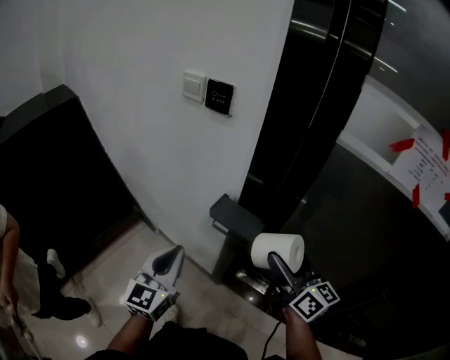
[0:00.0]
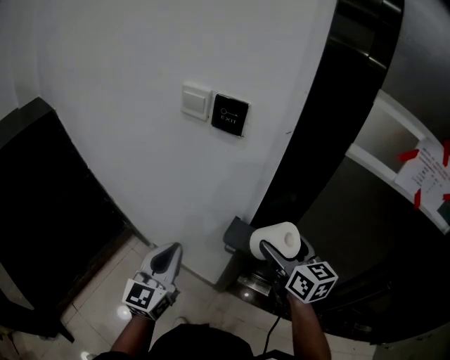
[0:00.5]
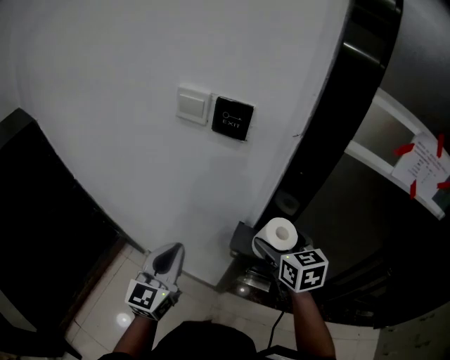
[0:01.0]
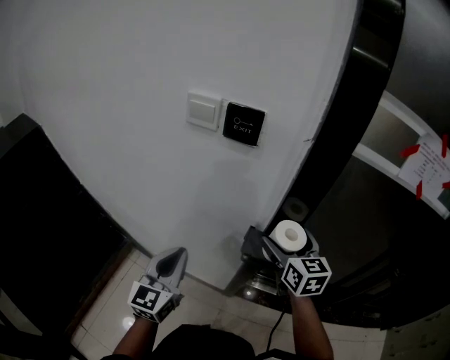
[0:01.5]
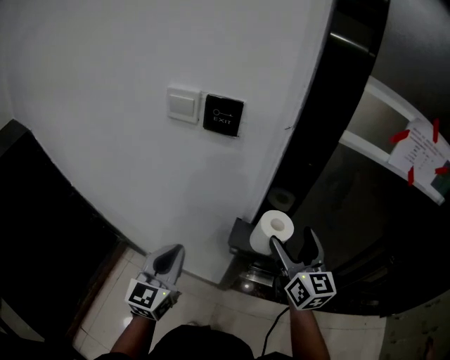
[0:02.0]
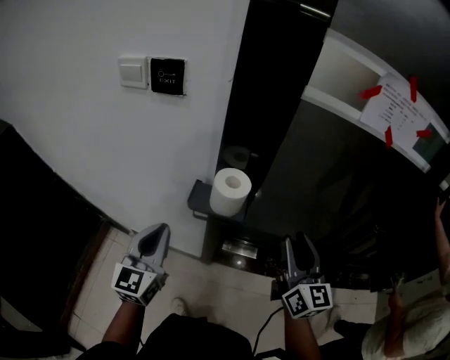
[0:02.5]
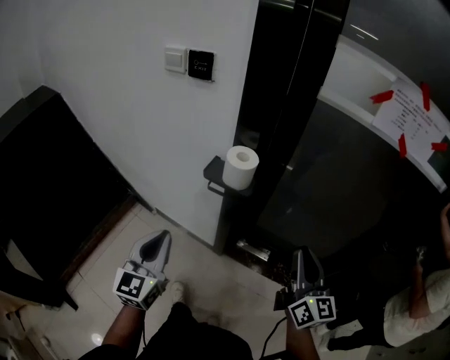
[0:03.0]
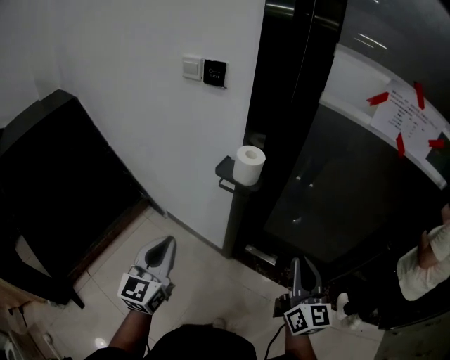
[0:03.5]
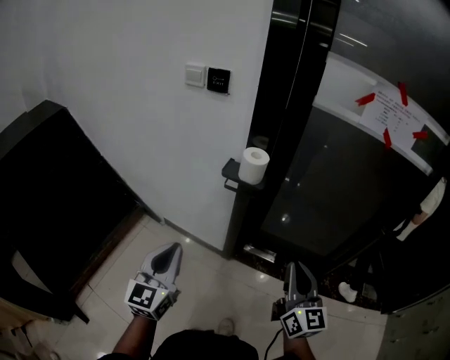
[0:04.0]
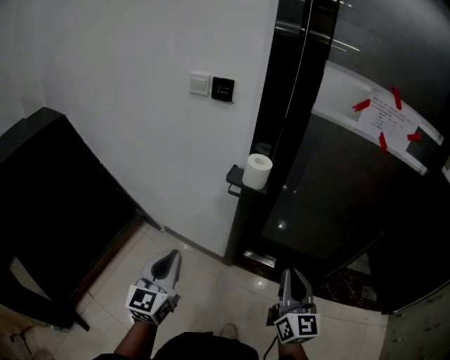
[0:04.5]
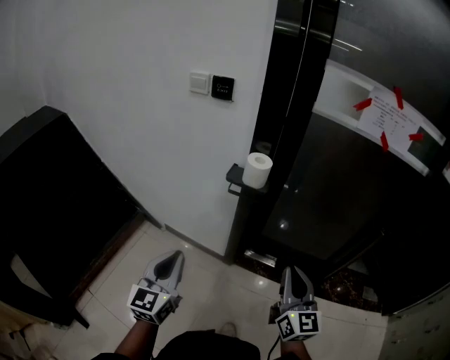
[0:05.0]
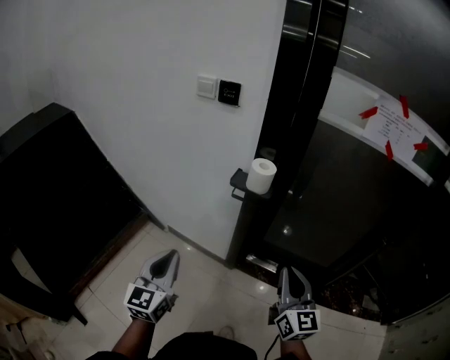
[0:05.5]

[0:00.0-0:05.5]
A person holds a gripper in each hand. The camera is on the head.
0:00.0 to 0:02.0: Both grippers travel together forward and to the left, roughly 15 cm. The right gripper swivels roughly 40 degrees.
0:02.0 to 0:03.5: The right gripper heads backward and to the right, covering approximately 30 cm, and closes up; the left gripper is displaced backward by approximately 25 cm.
0:03.5 to 0:05.5: The right gripper shifts approximately 10 cm to the left and backward. Meanwhile the left gripper goes roughly 5 cm to the left.

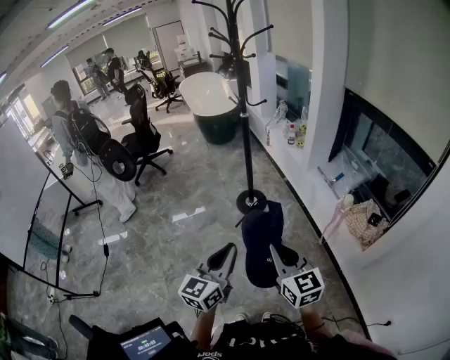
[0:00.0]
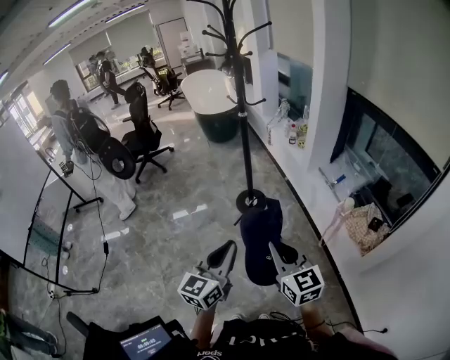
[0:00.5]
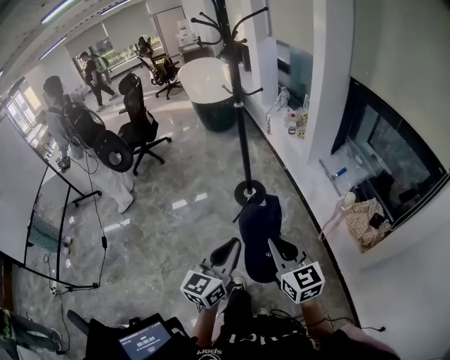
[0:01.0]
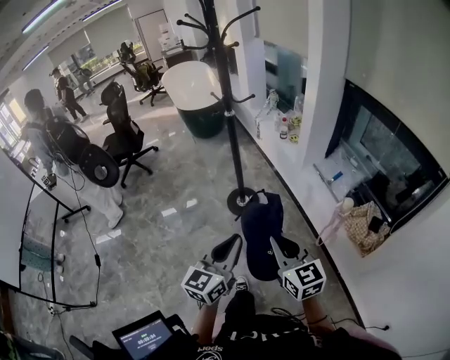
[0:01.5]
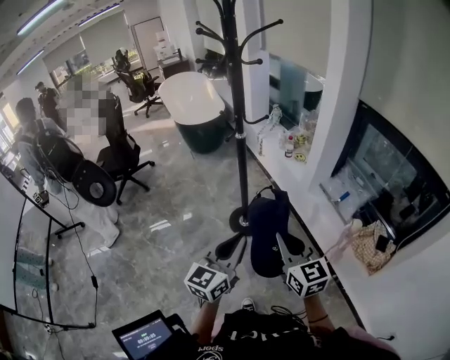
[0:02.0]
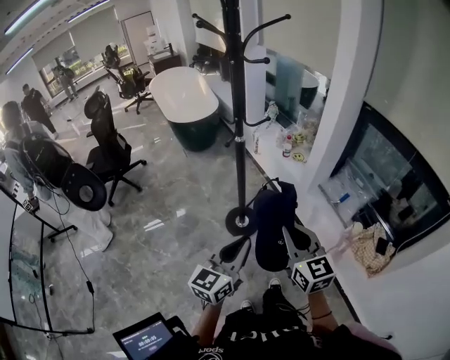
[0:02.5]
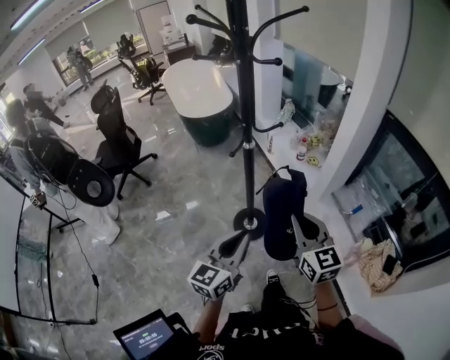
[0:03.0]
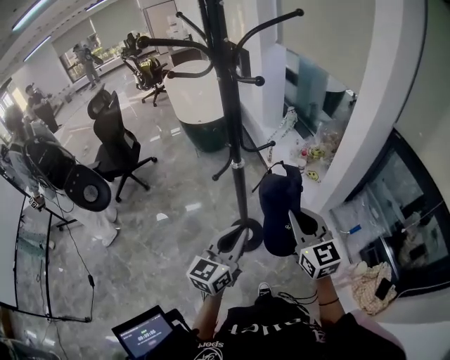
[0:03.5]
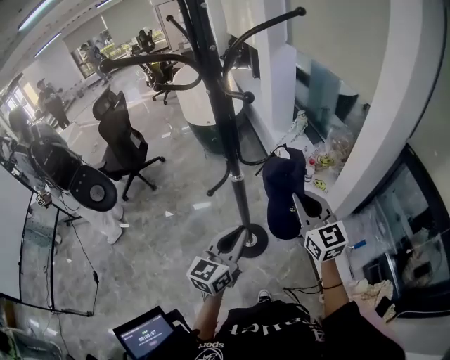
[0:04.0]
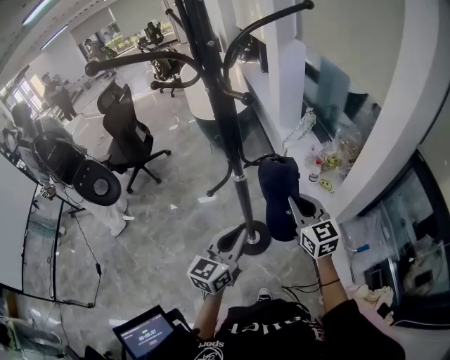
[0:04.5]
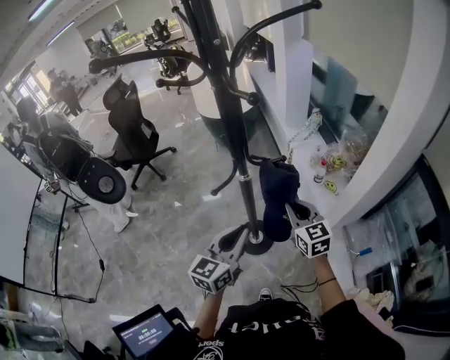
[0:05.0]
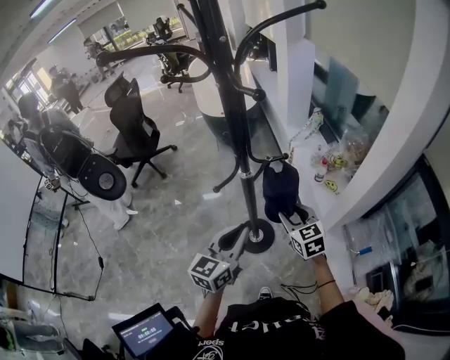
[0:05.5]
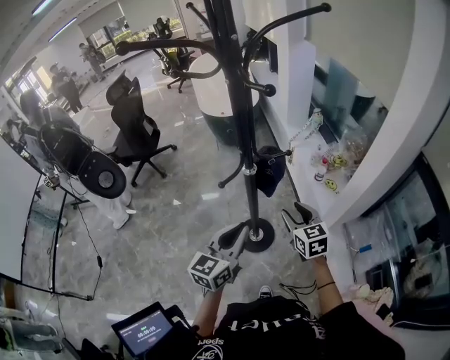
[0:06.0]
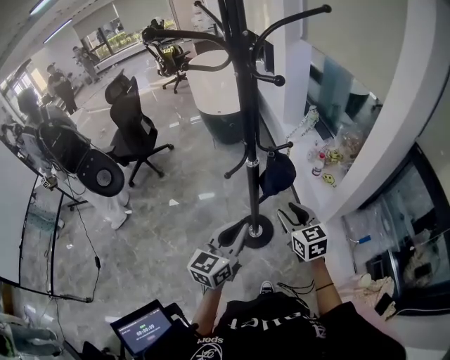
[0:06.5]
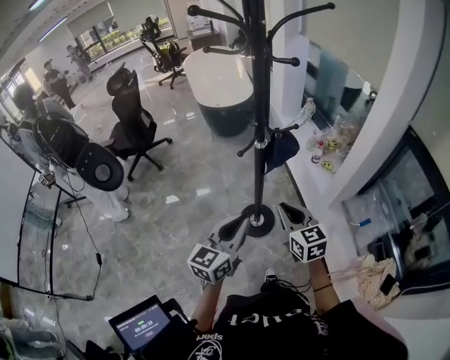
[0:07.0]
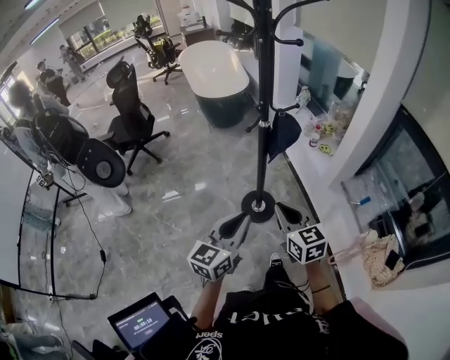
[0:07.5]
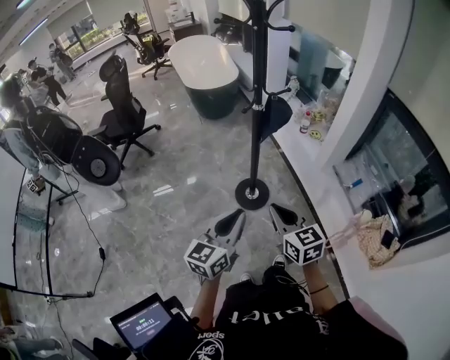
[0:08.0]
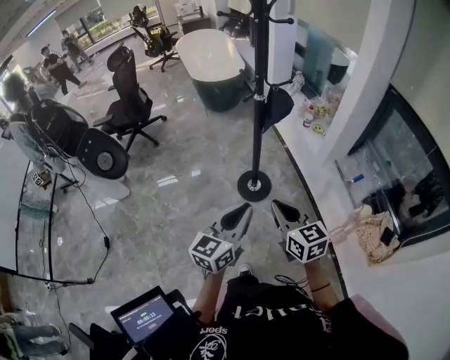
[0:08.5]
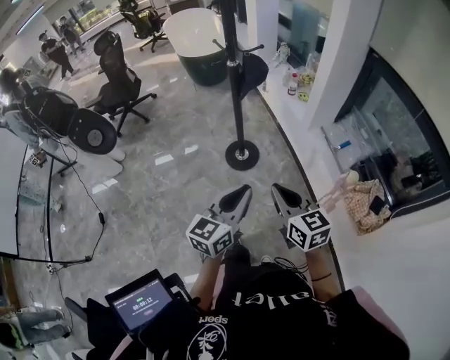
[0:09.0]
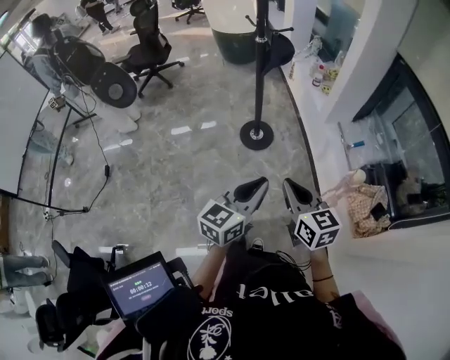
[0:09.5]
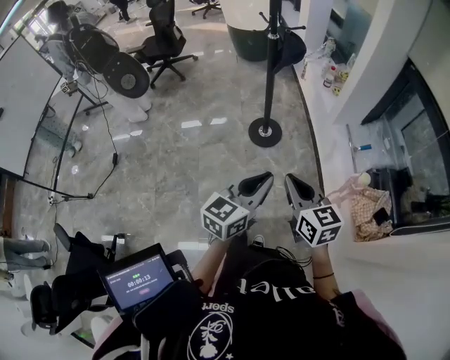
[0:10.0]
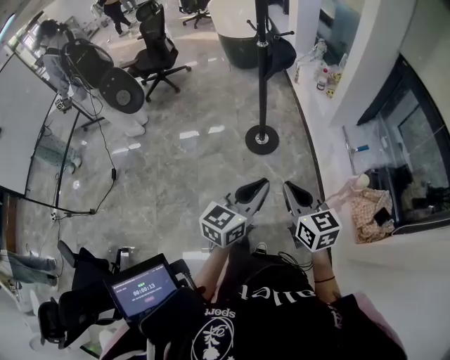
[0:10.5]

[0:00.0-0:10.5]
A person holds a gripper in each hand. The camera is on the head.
0:00.0 to 0:02.0: Both grippers travel together forward, roughly 30 cm.
0:02.0 to 0:04.0: The two grippers go about 40 cm forward.
0:04.0 to 0:06.5: The right gripper travels downward and to the left by approximately 15 cm, swivels about 20 degrees, and opens its fingers, while the left gripper changes place by about 5 cm.
0:06.5 to 0:08.5: The grippers both shift backward by approximately 30 cm. The right gripper closes its fingers.
0:08.5 to 0:10.5: Both grippers travel together backward and to the right, about 25 cm.

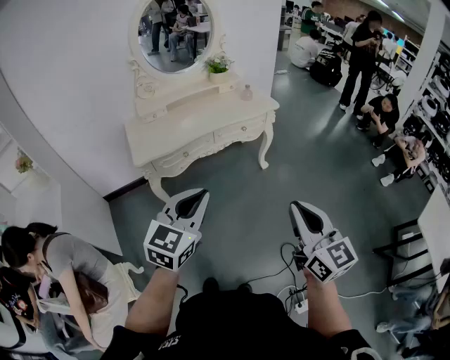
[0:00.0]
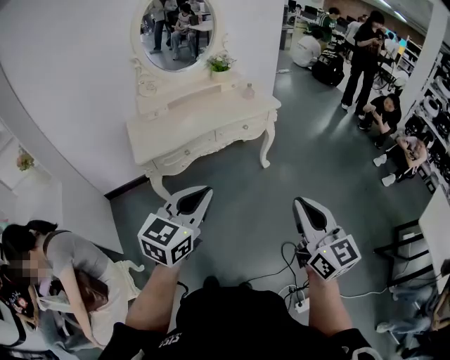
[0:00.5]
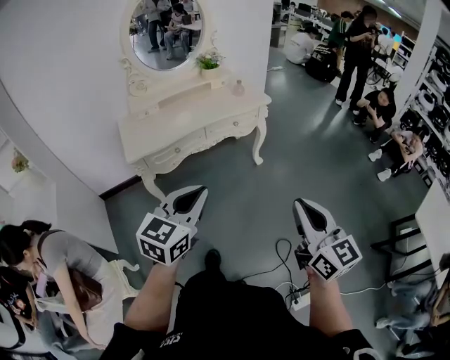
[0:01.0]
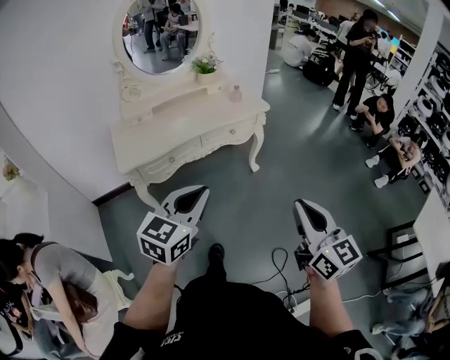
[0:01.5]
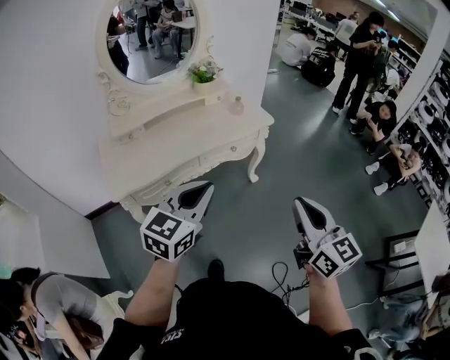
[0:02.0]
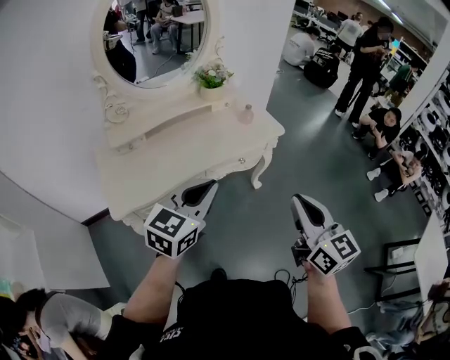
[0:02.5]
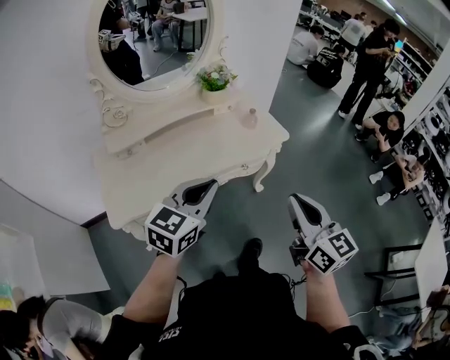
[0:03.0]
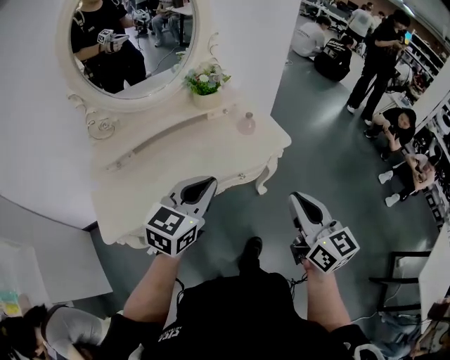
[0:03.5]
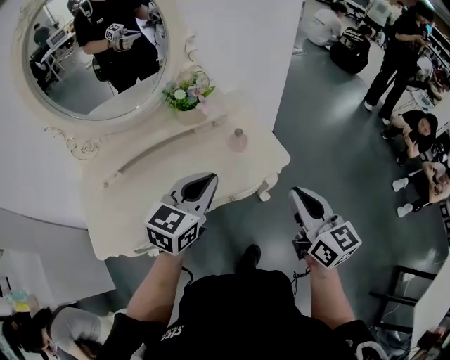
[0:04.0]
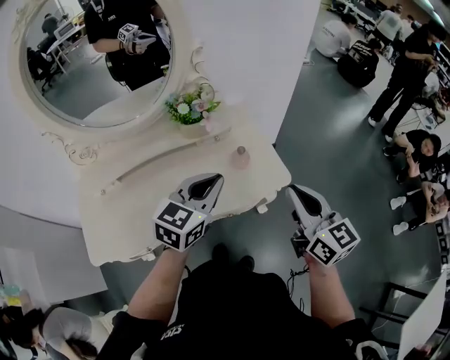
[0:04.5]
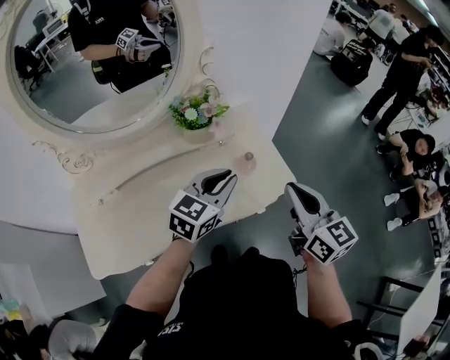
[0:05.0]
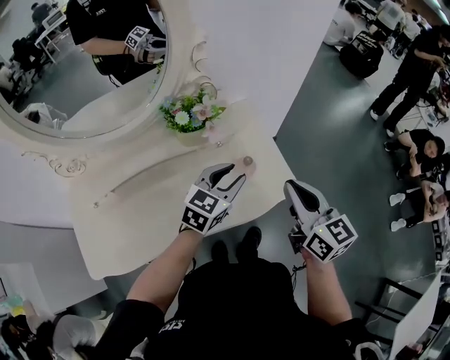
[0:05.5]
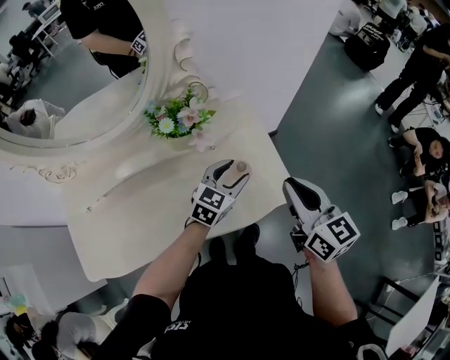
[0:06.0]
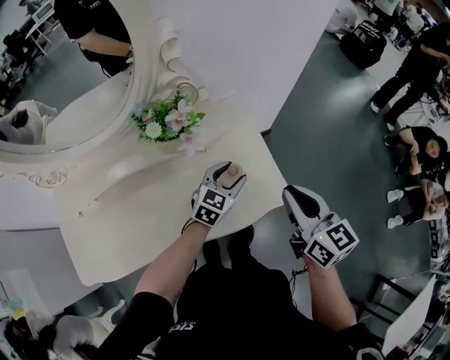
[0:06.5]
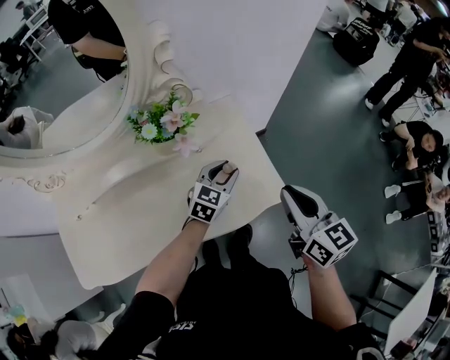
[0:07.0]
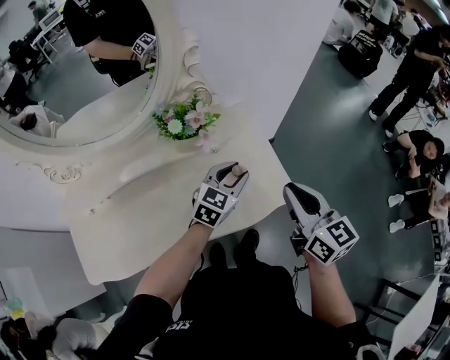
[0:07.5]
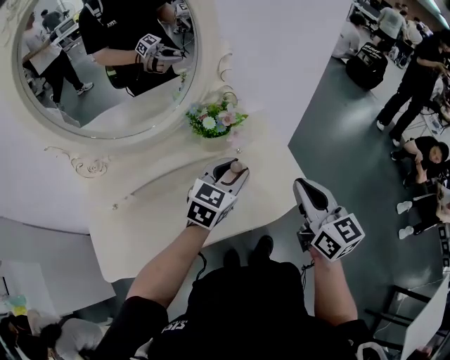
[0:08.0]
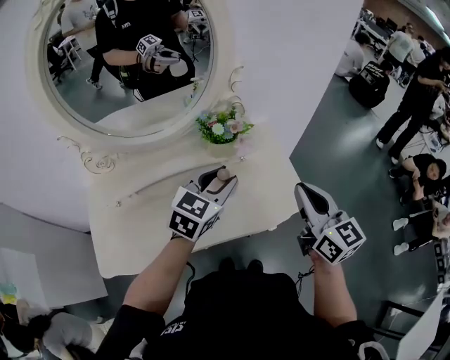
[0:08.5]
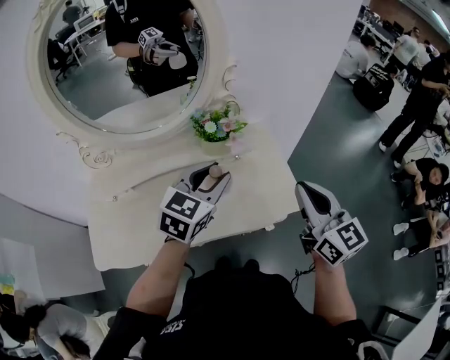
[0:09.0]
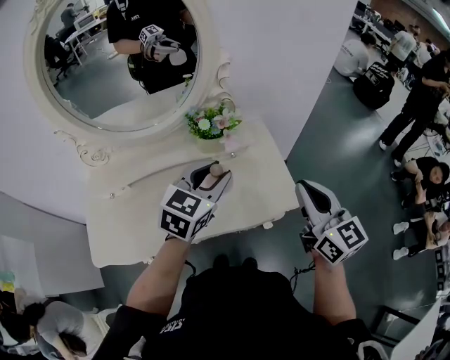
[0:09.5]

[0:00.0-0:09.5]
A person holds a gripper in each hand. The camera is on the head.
0:00.0 to 0:02.0: Both grippers travel together forward, approximately 25 cm.
0:02.0 to 0:04.0: The two grippers travel together, forward, about 40 cm.
0:04.0 to 0:05.5: The left gripper shifts roughly 20 cm forward and downward, and opens its fingers; the right gripper is displaced forward by approximately 15 cm.
0:05.5 to 0:07.5: The left gripper reaches about 10 cm downward, then returns.
0:07.5 to 0:09.5: The left gripper moves upward, to the left and backward, approximately 20 cm; the right gripper travels upward by about 10 cm.

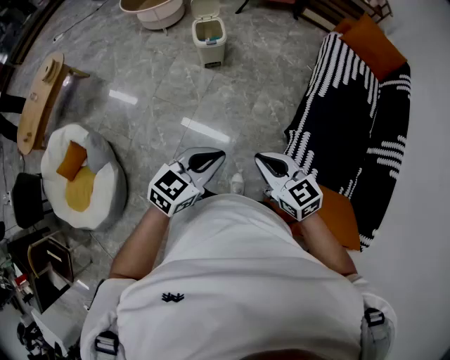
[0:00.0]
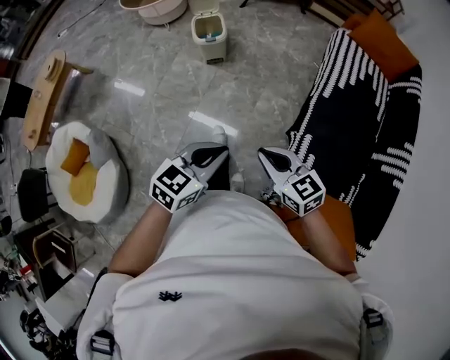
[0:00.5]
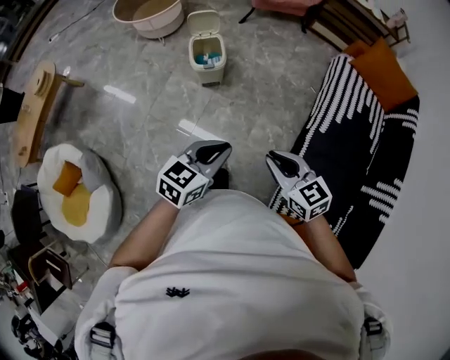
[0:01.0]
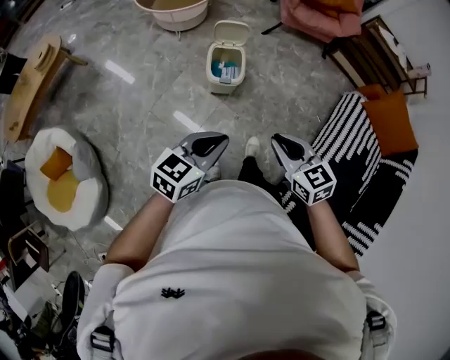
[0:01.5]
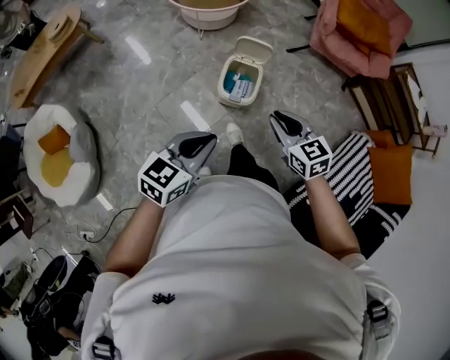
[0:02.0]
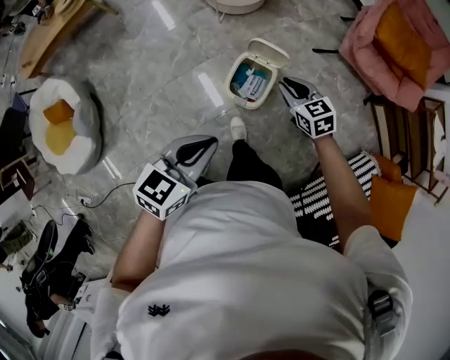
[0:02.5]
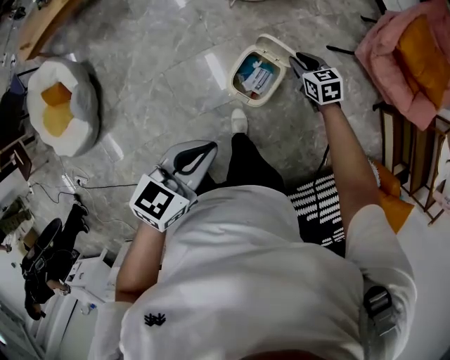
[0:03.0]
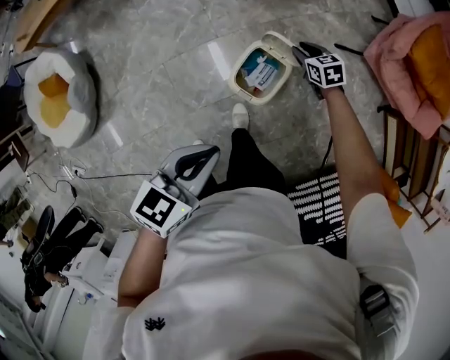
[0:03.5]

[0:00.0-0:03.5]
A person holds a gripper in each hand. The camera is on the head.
0:00.0 to 0:02.0: The pair of grippers is taken forward, approximately 60 cm. The left gripper rotates roughly 30 degrees; the right gripper swivels roughly 20 degrees.
0:02.0 to 0:03.5: The right gripper travels forward and downward by about 50 cm, and changes its angle by approximately 30 degrees, while the left gripper moves forward, some 15 cm, and changes its angle by roughly 20 degrees.
